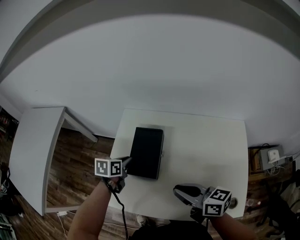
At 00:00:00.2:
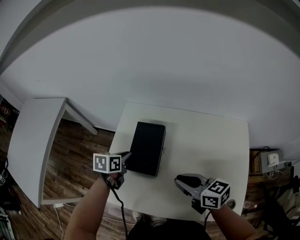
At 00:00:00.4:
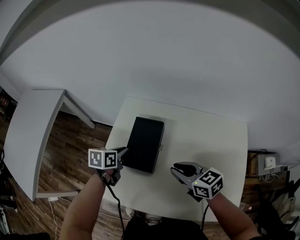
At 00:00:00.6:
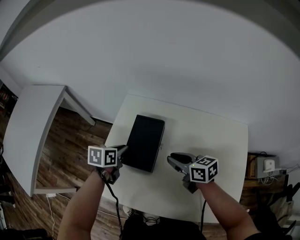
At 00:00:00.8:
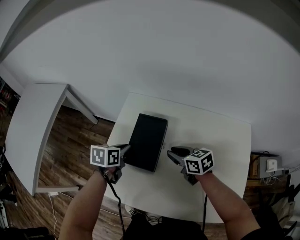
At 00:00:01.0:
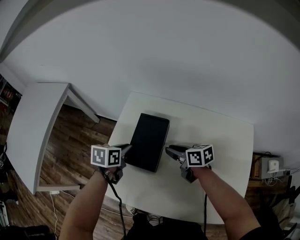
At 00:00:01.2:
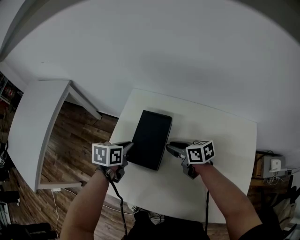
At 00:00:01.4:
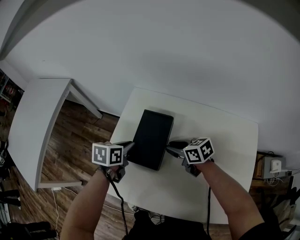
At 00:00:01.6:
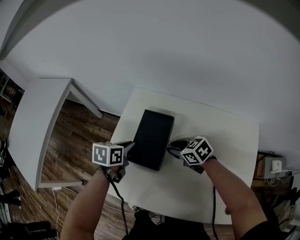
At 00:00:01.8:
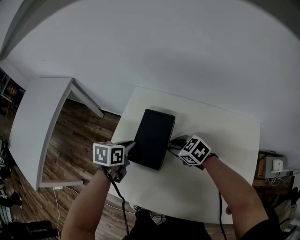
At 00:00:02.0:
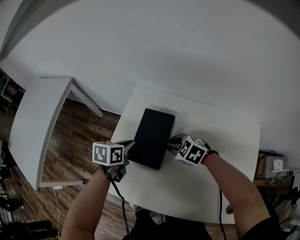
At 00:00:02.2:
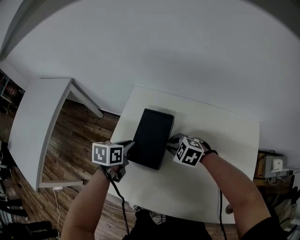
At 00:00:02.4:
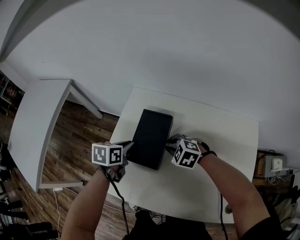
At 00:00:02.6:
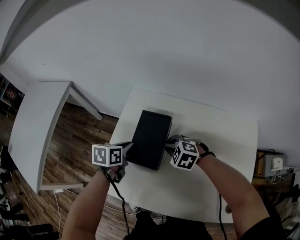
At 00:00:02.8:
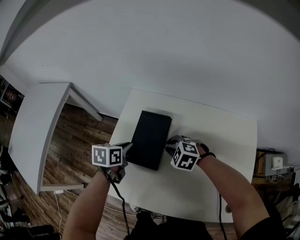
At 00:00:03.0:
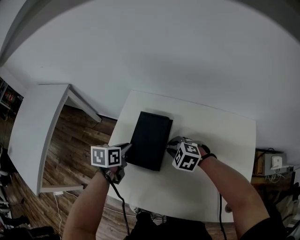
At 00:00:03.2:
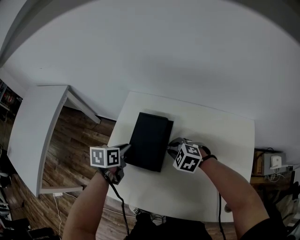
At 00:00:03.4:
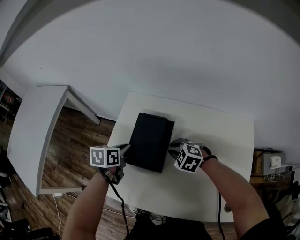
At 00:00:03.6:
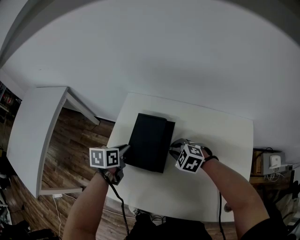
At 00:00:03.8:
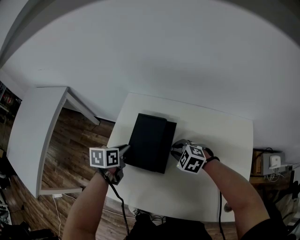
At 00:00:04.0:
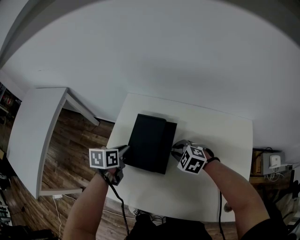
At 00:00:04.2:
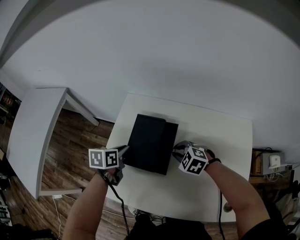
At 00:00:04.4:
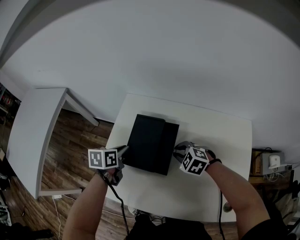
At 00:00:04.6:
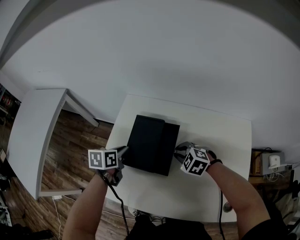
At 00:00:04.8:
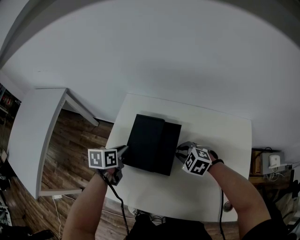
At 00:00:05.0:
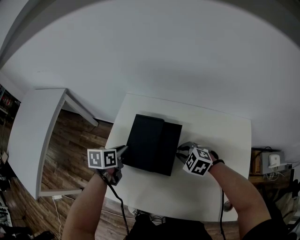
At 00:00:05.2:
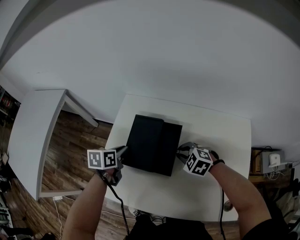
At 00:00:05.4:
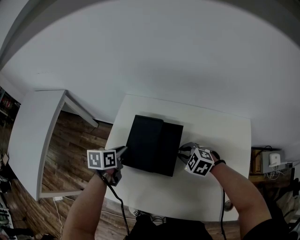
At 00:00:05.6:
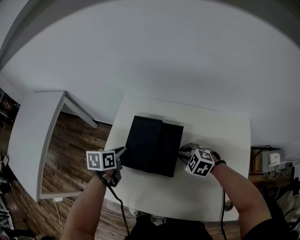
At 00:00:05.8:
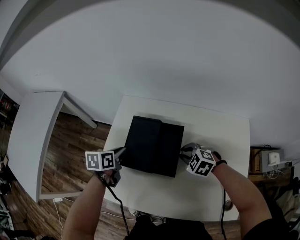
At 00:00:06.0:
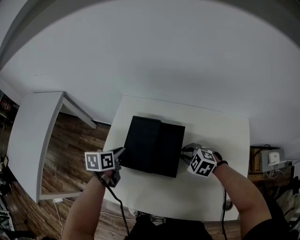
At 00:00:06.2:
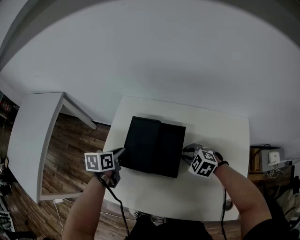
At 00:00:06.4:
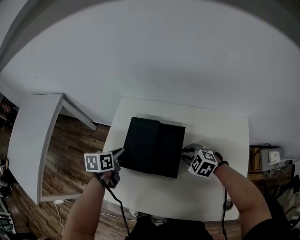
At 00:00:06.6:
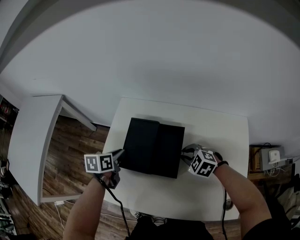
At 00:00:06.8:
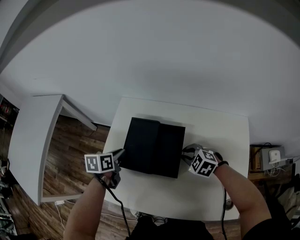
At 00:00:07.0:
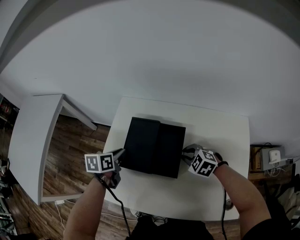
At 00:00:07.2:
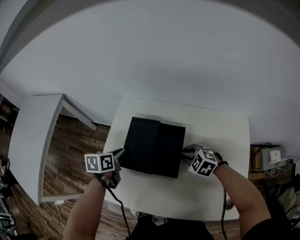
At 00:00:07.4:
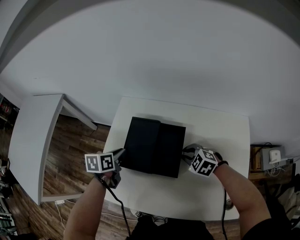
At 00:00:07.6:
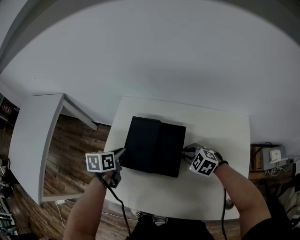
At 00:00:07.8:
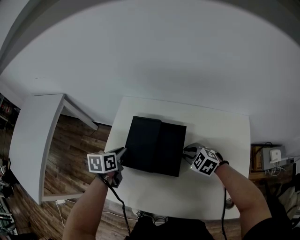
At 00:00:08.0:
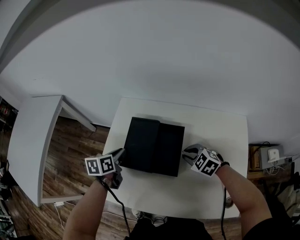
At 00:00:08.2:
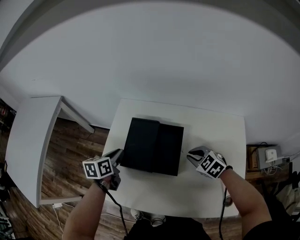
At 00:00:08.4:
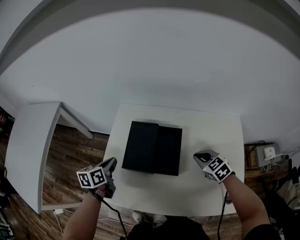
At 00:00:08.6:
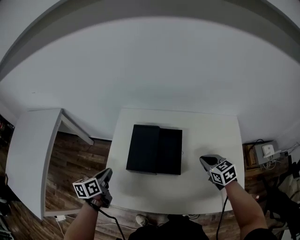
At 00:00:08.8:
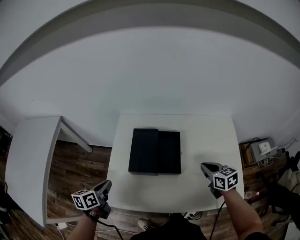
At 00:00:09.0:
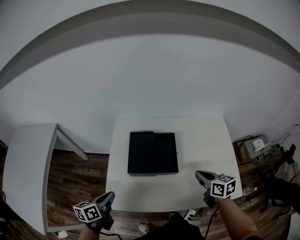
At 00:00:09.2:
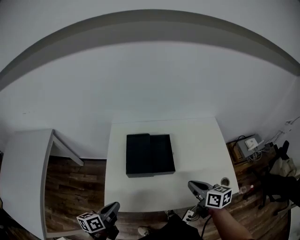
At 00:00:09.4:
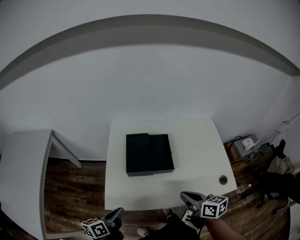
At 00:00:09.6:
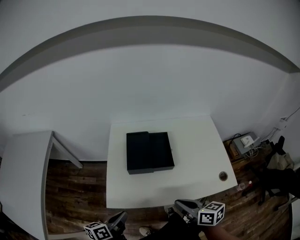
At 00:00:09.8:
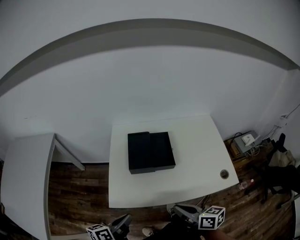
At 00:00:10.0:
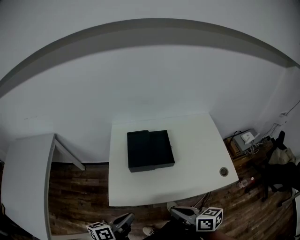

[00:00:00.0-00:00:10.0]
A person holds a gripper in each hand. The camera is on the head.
00:00:00.0 to 00:00:01.4: The right gripper is displaced forward and downward by approximately 20 cm, and swivels some 30 degrees.
00:00:01.4 to 00:00:02.8: The right gripper twists about 50 degrees counterclockwise, seen from behind.
00:00:02.8 to 00:00:04.2: The right gripper shifts by roughly 5 cm.
00:00:04.2 to 00:00:05.8: The grippers stay close to where they were, moving slightly.
00:00:05.8 to 00:00:07.2: The two grippers keep their place.
00:00:07.2 to 00:00:08.6: The left gripper goes roughly 10 cm to the left and backward; the right gripper shifts some 10 cm to the right, upward and backward, and turns by some 40 degrees.
00:00:08.6 to 00:00:10.0: The right gripper shifts about 35 cm backward and to the left, and rotates roughly 50 degrees, while the left gripper heads backward, covering roughly 20 cm, and rotates some 30 degrees.

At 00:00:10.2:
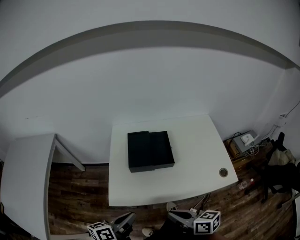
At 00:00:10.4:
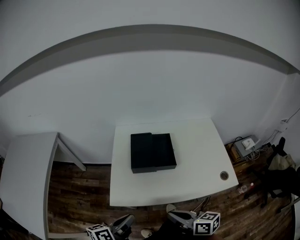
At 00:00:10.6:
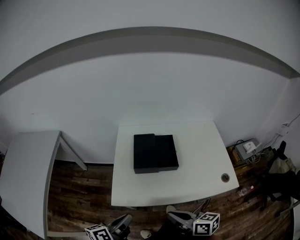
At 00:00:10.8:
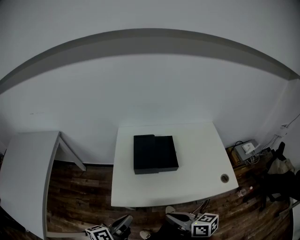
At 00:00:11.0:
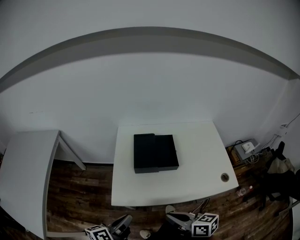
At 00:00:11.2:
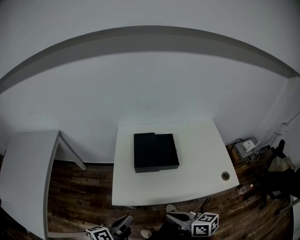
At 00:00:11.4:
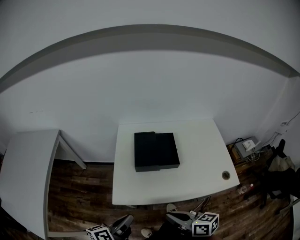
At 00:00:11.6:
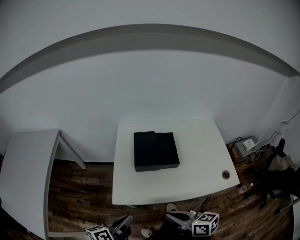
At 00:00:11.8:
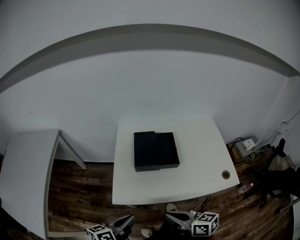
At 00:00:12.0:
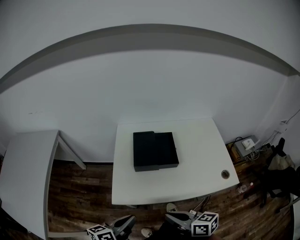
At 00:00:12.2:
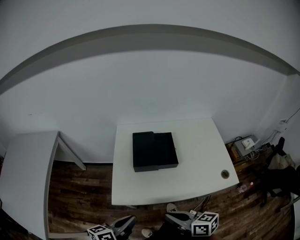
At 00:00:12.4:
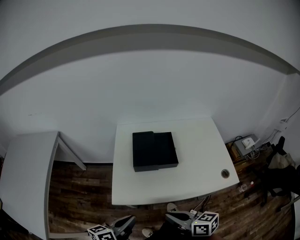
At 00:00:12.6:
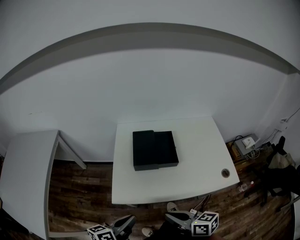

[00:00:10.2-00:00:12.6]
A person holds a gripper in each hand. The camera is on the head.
00:00:10.2 to 00:00:12.6: The grippers make only small movements.

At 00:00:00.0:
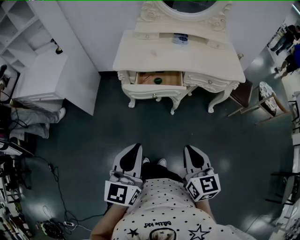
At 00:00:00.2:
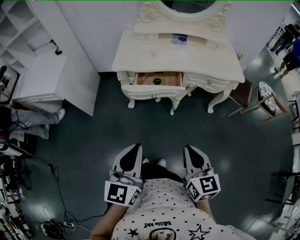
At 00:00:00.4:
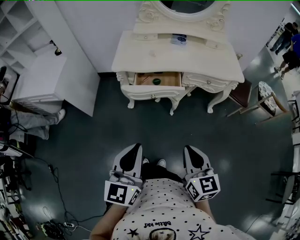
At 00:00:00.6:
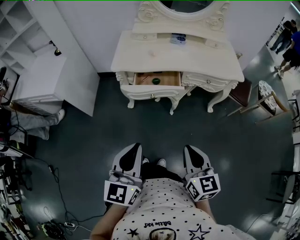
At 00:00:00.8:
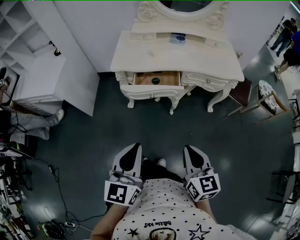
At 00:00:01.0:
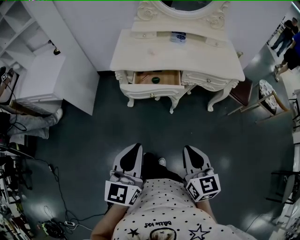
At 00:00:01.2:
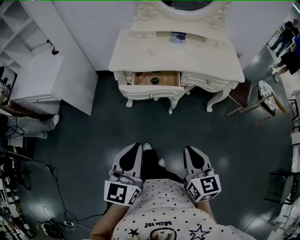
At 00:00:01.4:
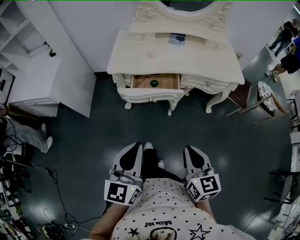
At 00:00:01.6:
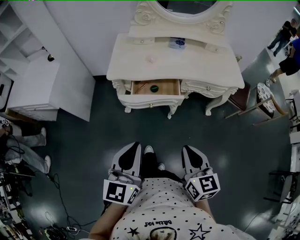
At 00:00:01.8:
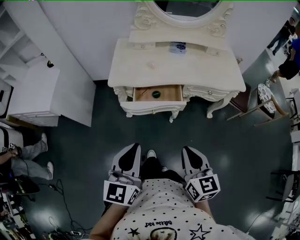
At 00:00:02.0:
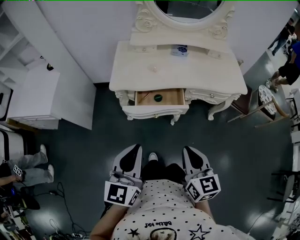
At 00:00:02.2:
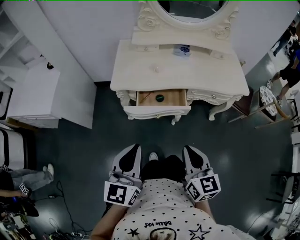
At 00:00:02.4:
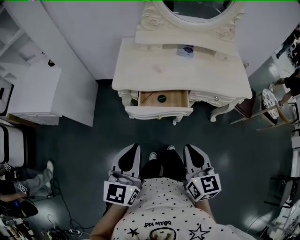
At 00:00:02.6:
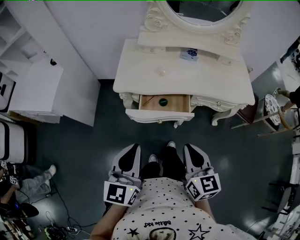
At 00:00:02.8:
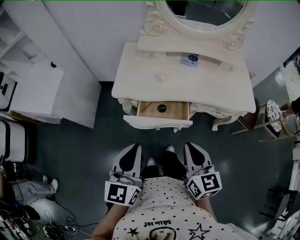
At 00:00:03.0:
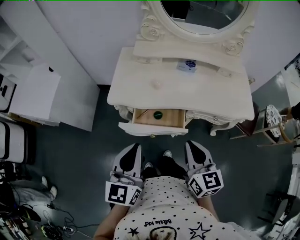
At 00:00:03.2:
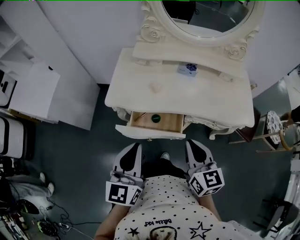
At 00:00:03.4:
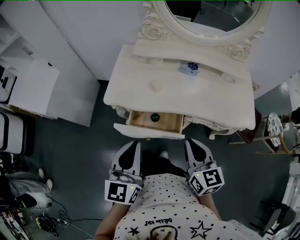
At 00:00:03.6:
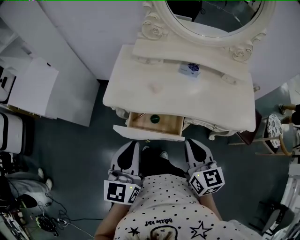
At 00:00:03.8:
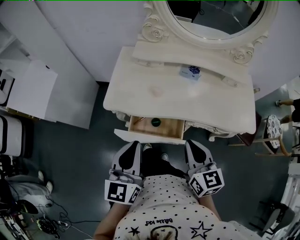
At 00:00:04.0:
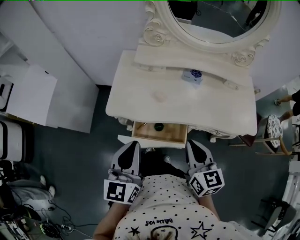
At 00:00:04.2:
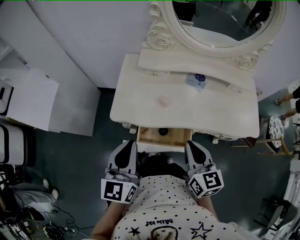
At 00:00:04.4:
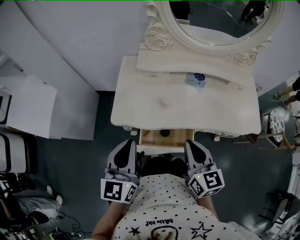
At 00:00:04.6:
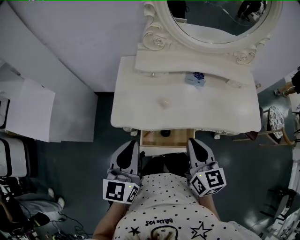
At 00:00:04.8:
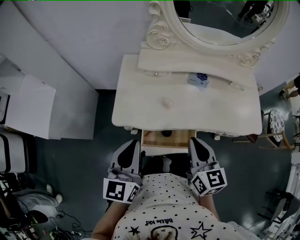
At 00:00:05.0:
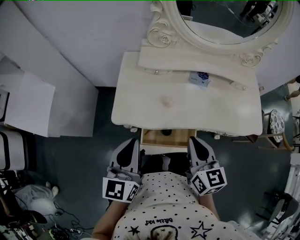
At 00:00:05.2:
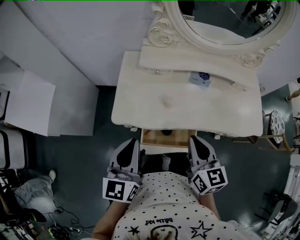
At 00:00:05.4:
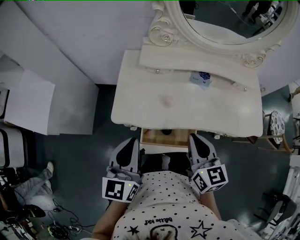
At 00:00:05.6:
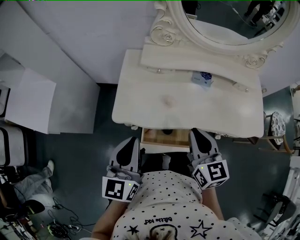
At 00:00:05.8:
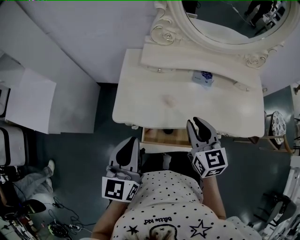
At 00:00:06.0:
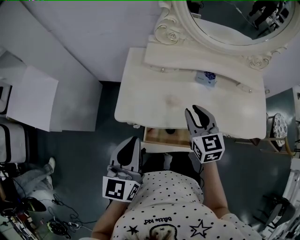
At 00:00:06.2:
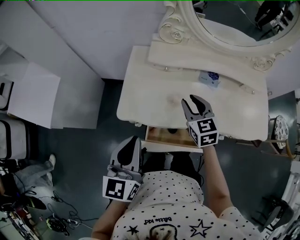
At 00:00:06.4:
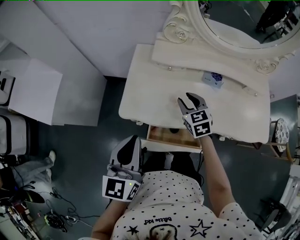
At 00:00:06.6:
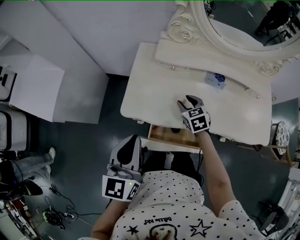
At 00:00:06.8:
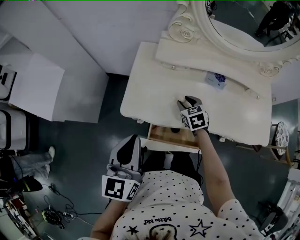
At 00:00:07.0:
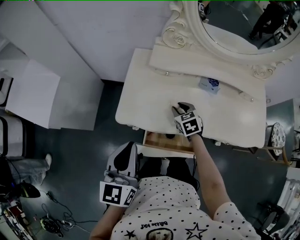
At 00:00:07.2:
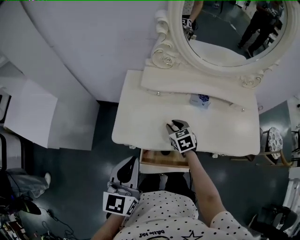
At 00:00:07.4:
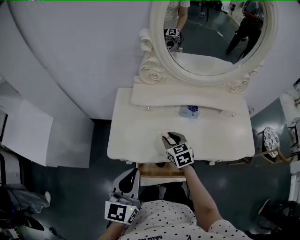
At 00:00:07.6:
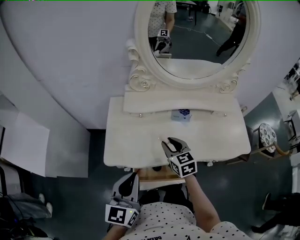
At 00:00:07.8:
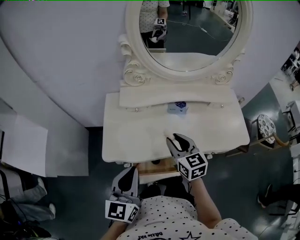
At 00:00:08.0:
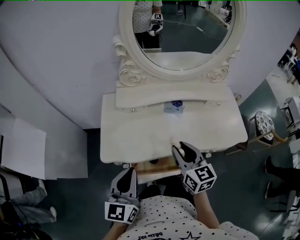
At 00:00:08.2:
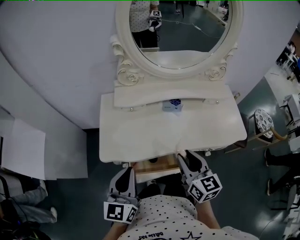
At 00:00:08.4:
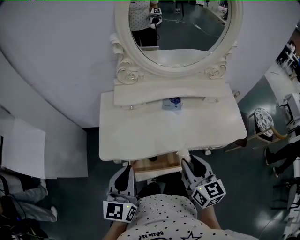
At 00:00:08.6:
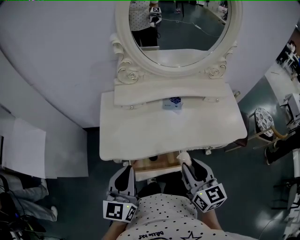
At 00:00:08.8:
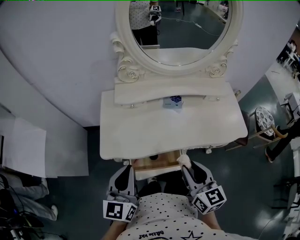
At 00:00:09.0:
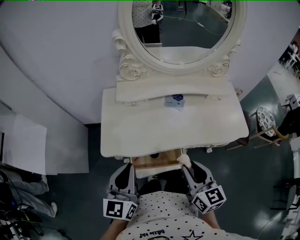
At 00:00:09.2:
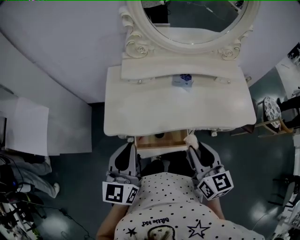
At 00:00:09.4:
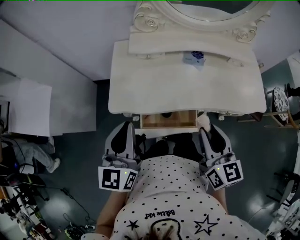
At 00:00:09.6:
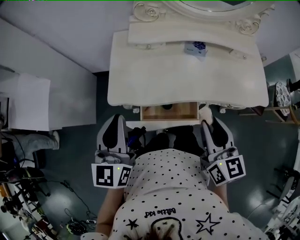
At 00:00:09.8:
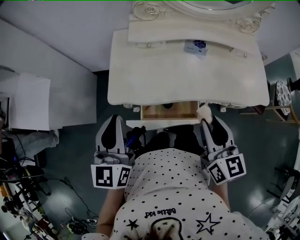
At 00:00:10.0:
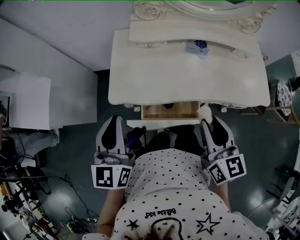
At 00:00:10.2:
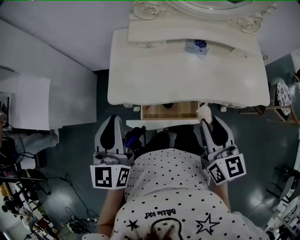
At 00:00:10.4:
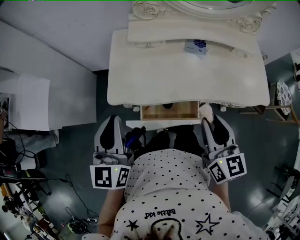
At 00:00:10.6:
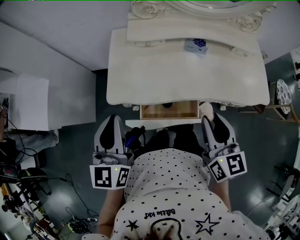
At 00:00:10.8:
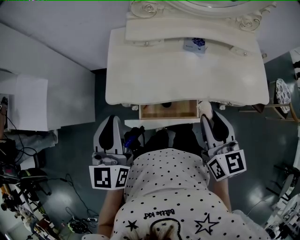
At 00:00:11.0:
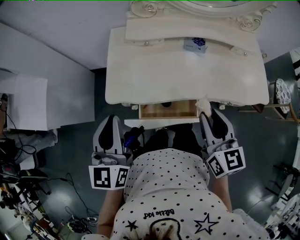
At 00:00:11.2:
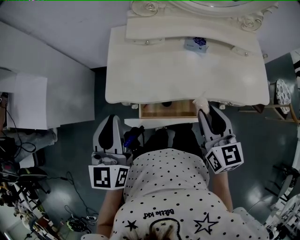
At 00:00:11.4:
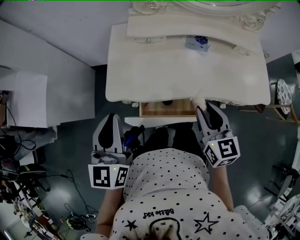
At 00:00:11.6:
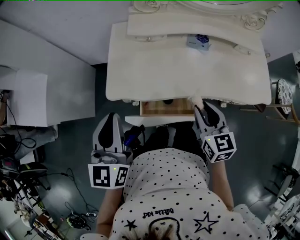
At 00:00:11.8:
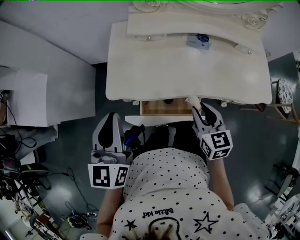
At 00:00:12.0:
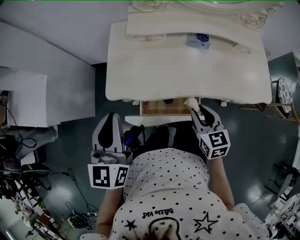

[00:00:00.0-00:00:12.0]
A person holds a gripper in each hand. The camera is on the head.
00:00:00.0 to 00:00:01.6: The two grippers go about 10 cm forward.
00:00:01.6 to 00:00:03.0: The grippers both shift forward by approximately 20 cm.
00:00:03.0 to 00:00:04.4: The two grippers go some 15 cm forward.
00:00:04.4 to 00:00:06.0: The right gripper travels forward by roughly 15 cm.
00:00:06.0 to 00:00:07.6: The right gripper travels downward and back again, some 15 cm each way.
00:00:07.6 to 00:00:09.0: The right gripper goes roughly 20 cm backward, upward and to the right.
00:00:09.0 to 00:00:10.4: The left gripper is displaced to the left by roughly 5 cm.
00:00:10.4 to 00:00:12.0: The right gripper heads downward, covering approximately 15 cm.
